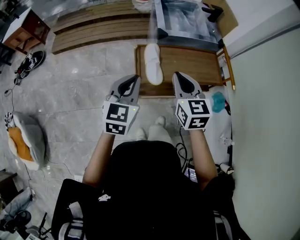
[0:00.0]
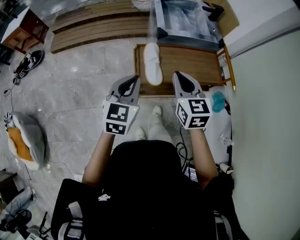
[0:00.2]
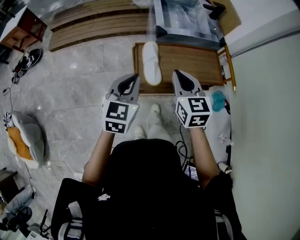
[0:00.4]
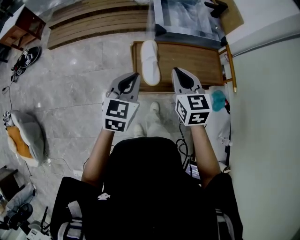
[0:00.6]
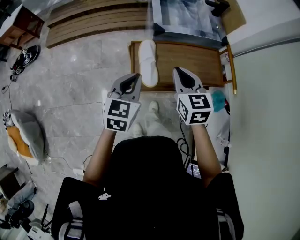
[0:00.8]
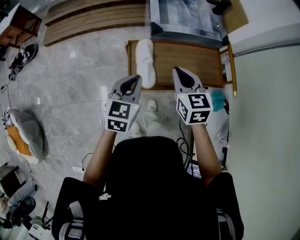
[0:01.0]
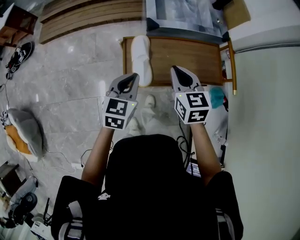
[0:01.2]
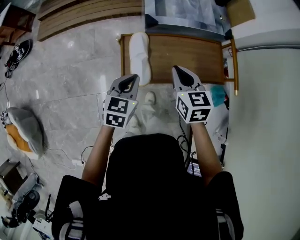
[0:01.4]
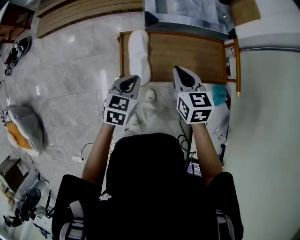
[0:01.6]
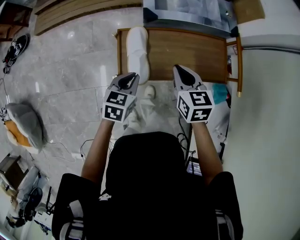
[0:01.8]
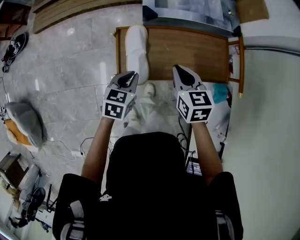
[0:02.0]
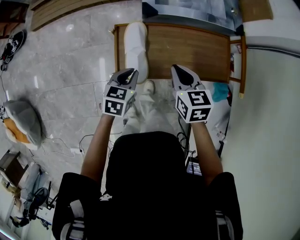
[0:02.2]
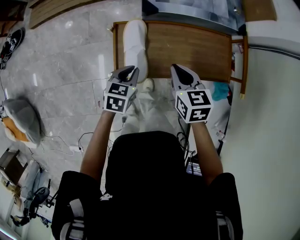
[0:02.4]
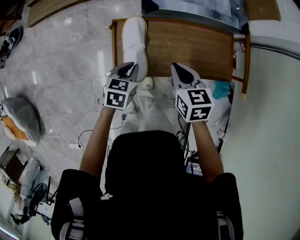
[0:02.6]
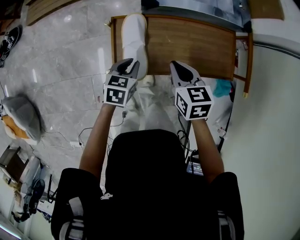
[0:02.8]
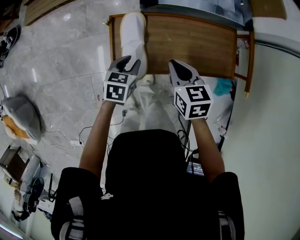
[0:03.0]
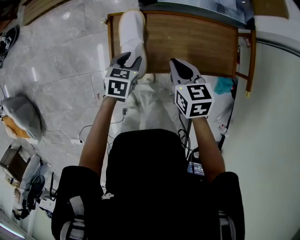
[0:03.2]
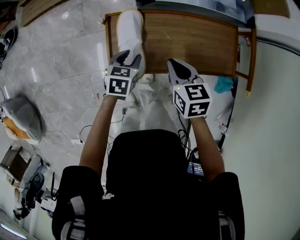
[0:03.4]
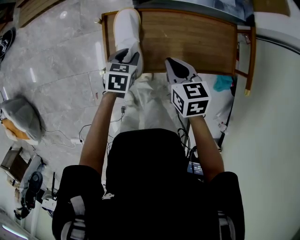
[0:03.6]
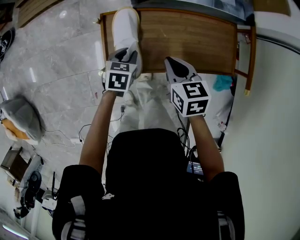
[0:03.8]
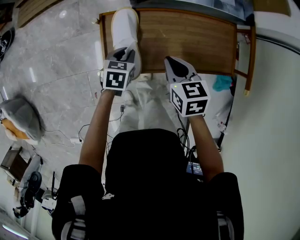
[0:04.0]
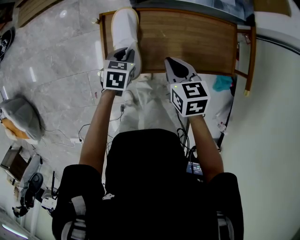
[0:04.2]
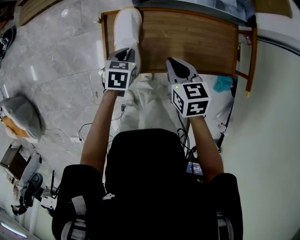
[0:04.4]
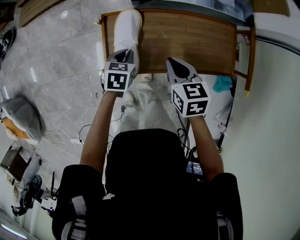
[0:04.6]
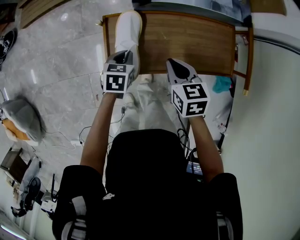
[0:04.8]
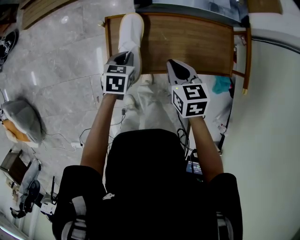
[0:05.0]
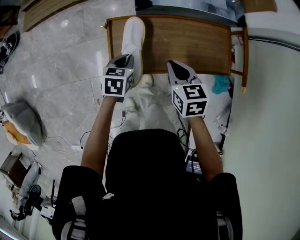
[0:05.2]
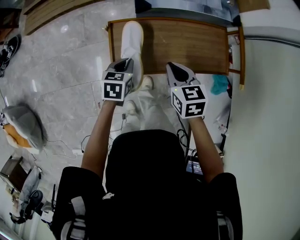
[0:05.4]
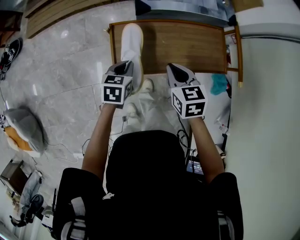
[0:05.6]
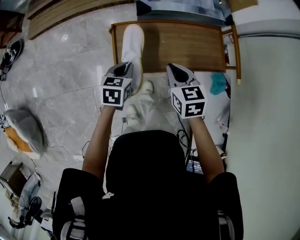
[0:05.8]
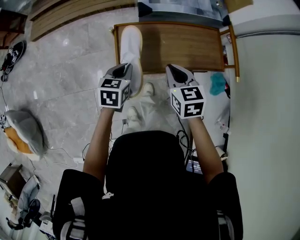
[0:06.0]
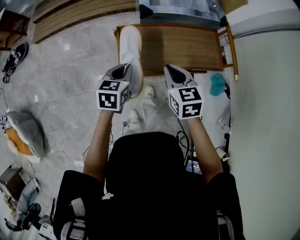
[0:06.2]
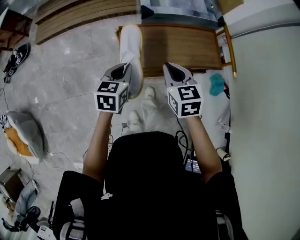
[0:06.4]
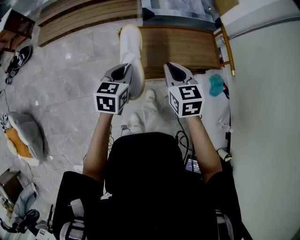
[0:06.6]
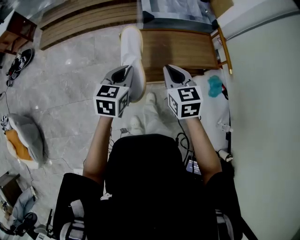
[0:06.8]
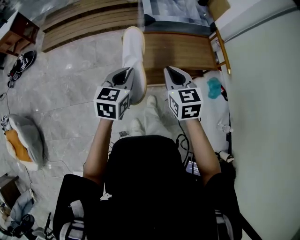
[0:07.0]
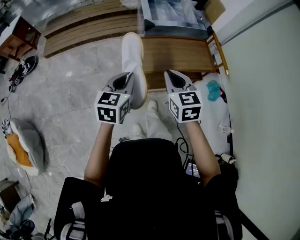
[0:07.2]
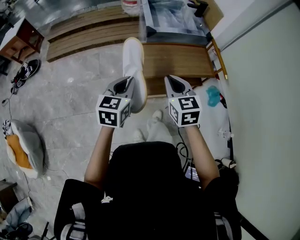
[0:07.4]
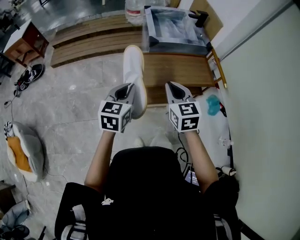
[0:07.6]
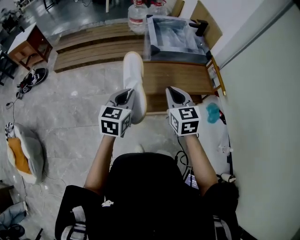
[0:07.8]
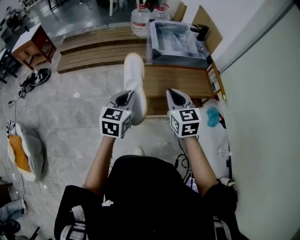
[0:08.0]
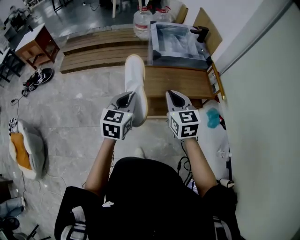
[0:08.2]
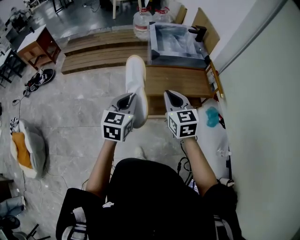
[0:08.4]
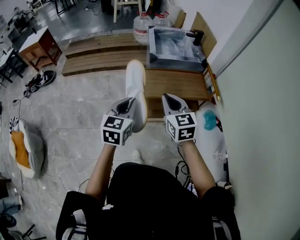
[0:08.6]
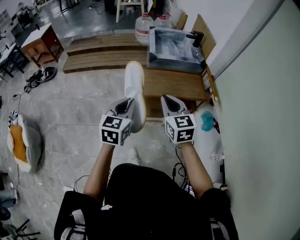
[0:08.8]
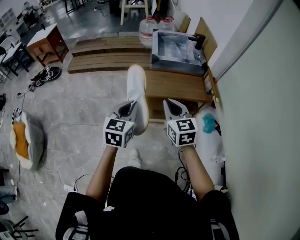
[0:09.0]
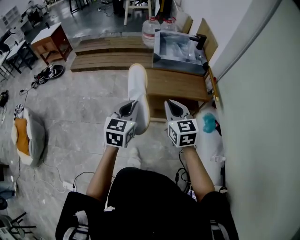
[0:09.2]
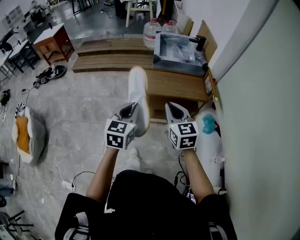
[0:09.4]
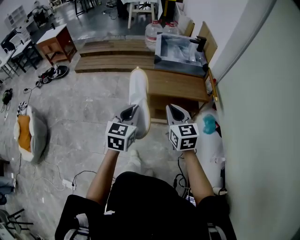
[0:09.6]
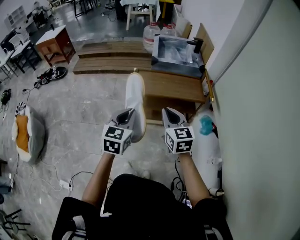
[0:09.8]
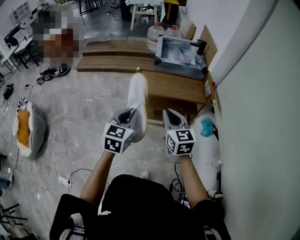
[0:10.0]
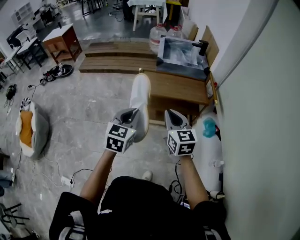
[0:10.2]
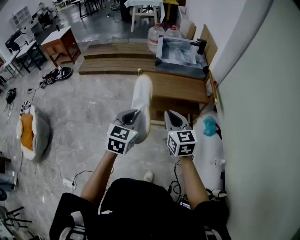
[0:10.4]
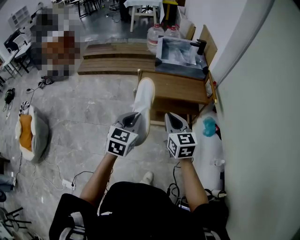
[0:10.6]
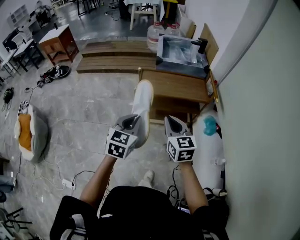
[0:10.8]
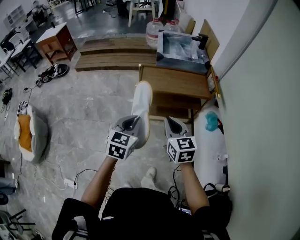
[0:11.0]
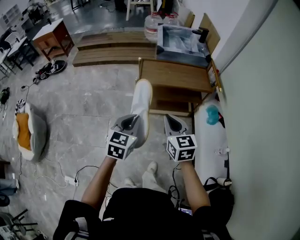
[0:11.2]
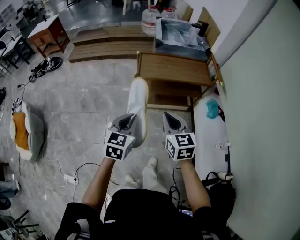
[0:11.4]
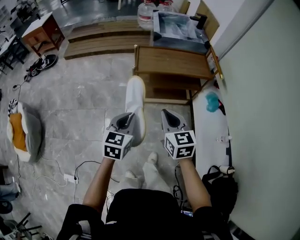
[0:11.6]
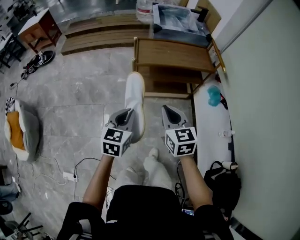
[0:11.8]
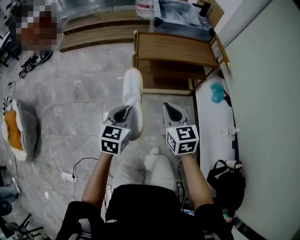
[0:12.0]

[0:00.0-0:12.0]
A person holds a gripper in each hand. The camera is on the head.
0:00.0 to 0:01.6: The right gripper moves forward, downward and to the right, some 25 cm, while the left gripper is displaced downward, forward and to the right by approximately 25 cm, and swivels some 30 degrees.
0:01.6 to 0:03.0: The two grippers go roughly 10 cm downward. The left gripper opens.
0:03.0 to 0:04.4: The left gripper shifts by some 5 cm.
0:04.4 to 0:06.0: Both grippers move upward and backward, about 15 cm.
0:06.0 to 0:07.6: The left gripper is displaced upward and backward by about 25 cm, and swivels some 20 degrees, while the right gripper goes roughly 20 cm backward and upward.
0:07.6 to 0:09.0: The left gripper is displaced backward, to the right and upward by some 15 cm; the right gripper heads backward, upward and to the right, covering roughly 15 cm.
0:09.0 to 0:10.4: The two grippers go approximately 10 cm backward.
0:10.4 to 0:12.0: The two grippers go approximately 20 cm downward and to the left.

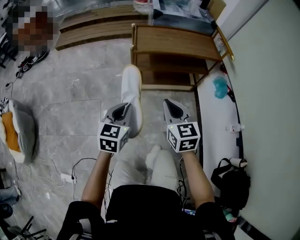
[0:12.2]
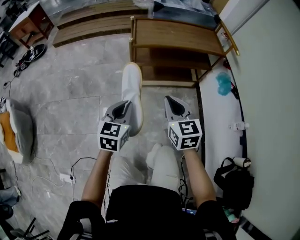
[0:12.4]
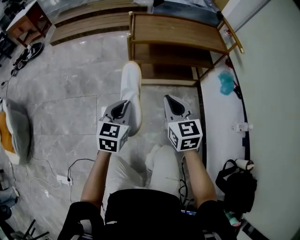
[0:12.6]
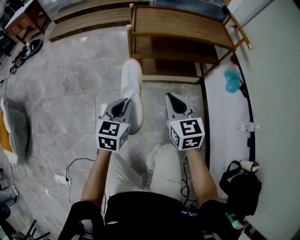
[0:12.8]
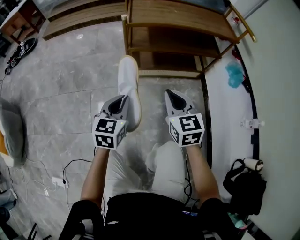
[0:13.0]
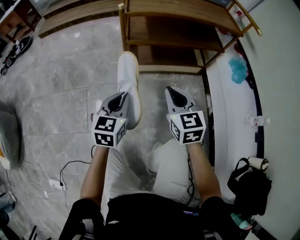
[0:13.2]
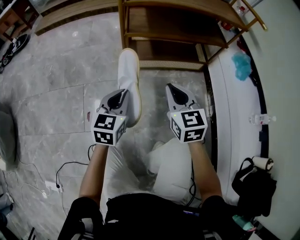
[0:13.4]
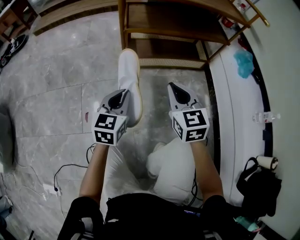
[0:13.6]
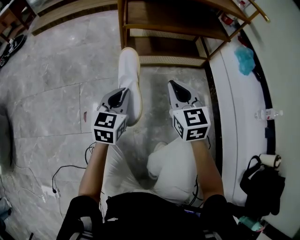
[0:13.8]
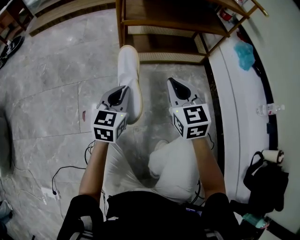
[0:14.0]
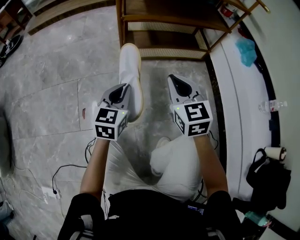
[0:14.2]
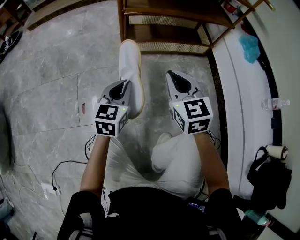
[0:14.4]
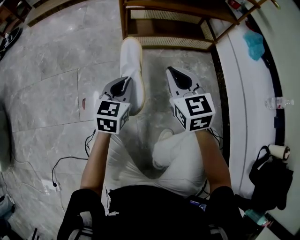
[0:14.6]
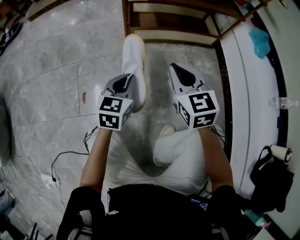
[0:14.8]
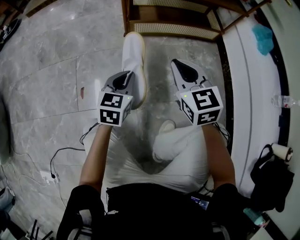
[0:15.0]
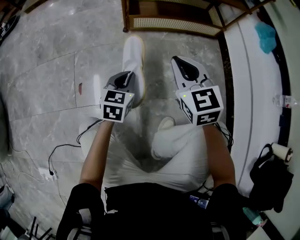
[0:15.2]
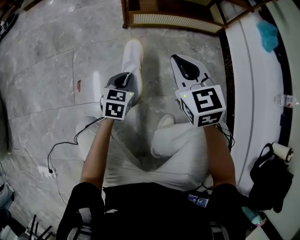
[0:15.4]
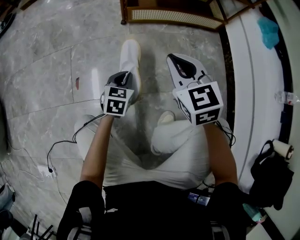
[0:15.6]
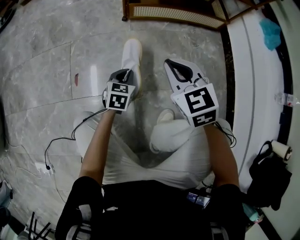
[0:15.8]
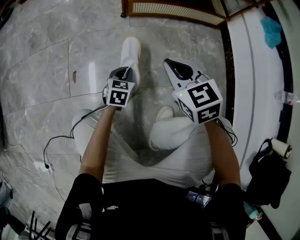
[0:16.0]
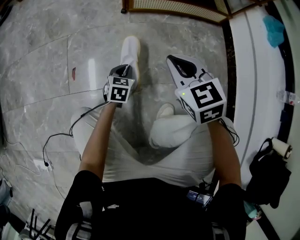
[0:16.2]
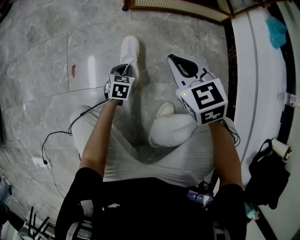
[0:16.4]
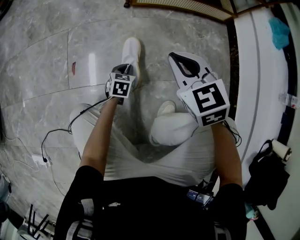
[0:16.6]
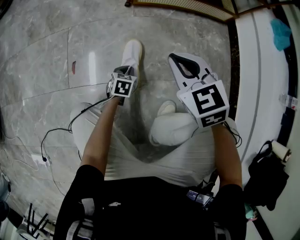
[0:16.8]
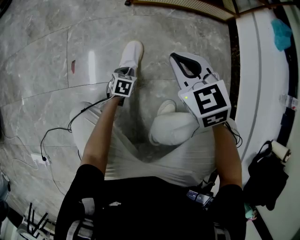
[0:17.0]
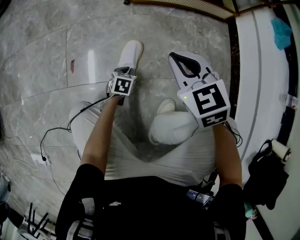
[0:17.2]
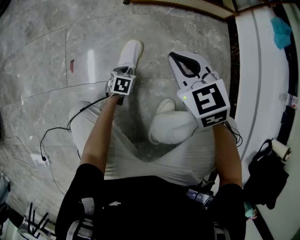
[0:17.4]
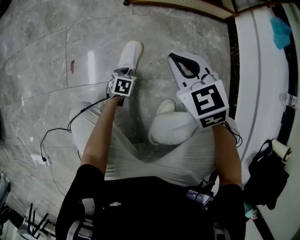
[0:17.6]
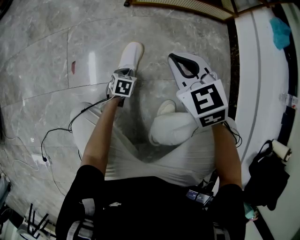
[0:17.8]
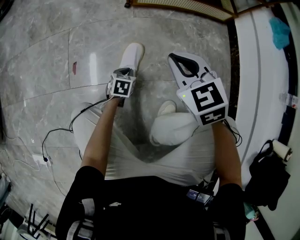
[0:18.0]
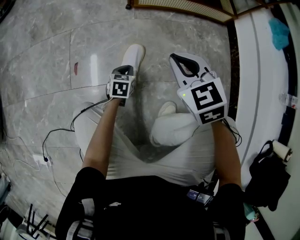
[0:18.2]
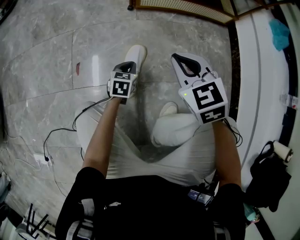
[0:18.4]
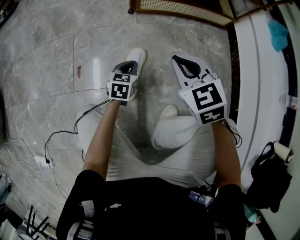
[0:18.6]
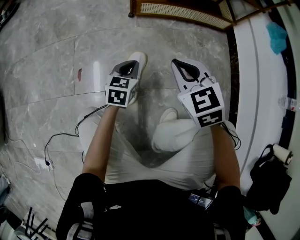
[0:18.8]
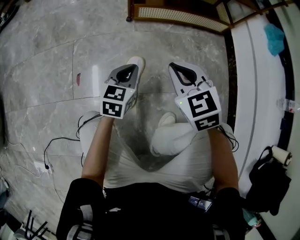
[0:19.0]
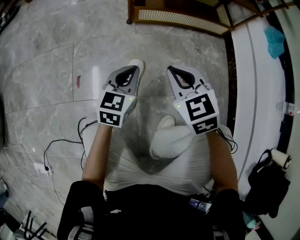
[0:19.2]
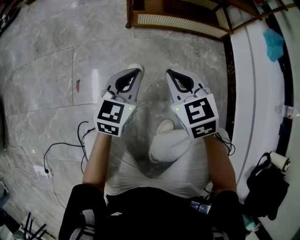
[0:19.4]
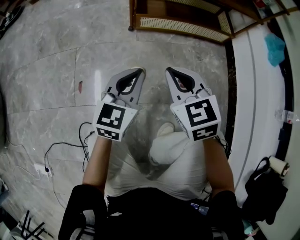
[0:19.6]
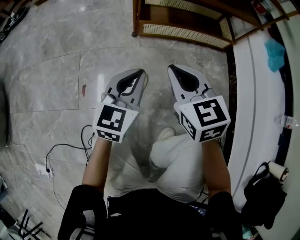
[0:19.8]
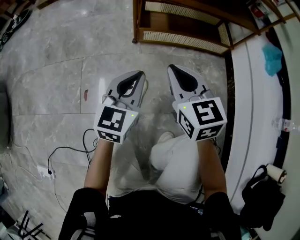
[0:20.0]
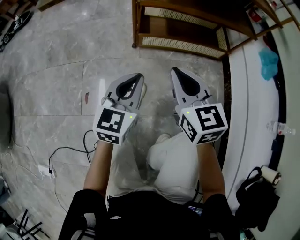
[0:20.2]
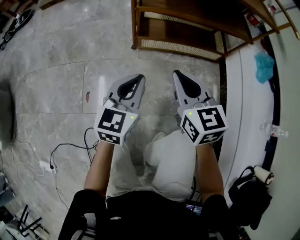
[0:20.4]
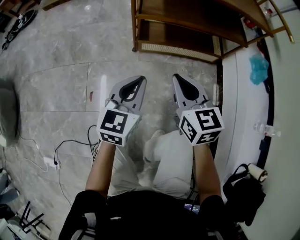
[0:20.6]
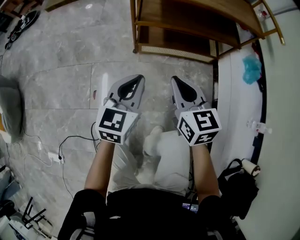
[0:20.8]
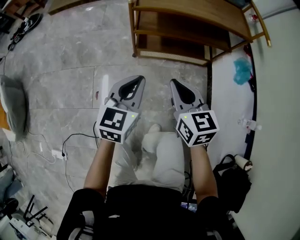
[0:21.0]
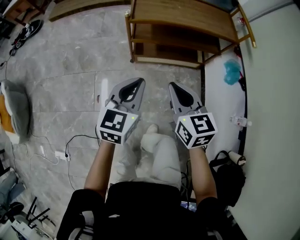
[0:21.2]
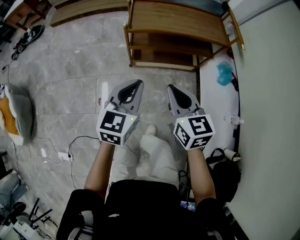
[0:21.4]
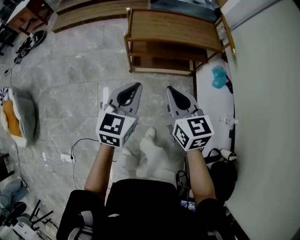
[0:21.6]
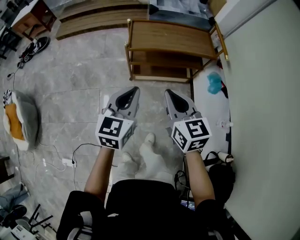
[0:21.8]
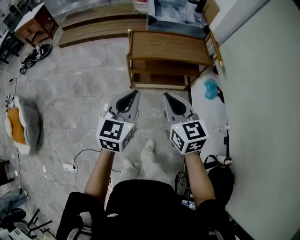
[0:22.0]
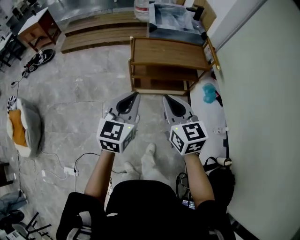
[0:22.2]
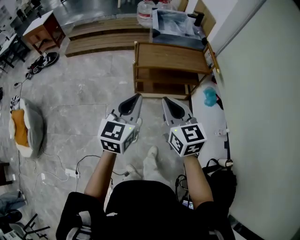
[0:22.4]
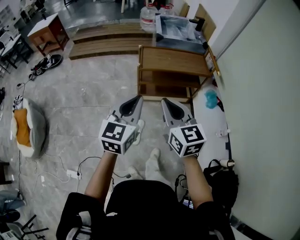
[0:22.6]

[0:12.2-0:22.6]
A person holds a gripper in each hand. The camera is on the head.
0:12.2 to 0:13.6: Both grippers move downward, some 35 cm.
0:13.6 to 0:15.2: The right gripper goes roughly 10 cm downward. Meanwhile the left gripper moves downward, roughly 20 cm.
0:15.2 to 0:16.6: The right gripper moves downward, some 5 cm. The left gripper heads downward, covering about 20 cm.
0:16.6 to 0:18.2: The grippers move only a little.
0:18.2 to 0:19.6: The right gripper changes place by approximately 5 cm, while the left gripper heads upward, covering some 30 cm, and tips its fingers upward by roughly 30 degrees.
0:19.6 to 0:21.2: Both grippers travel together upward, roughly 40 cm. The right gripper turns by approximately 20 degrees.
0:21.2 to 0:22.6: The two grippers go roughly 35 cm upward and backward.

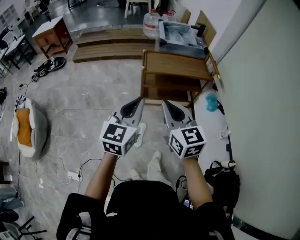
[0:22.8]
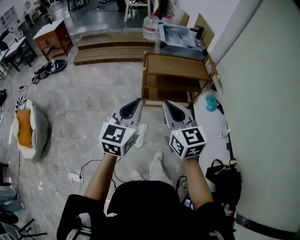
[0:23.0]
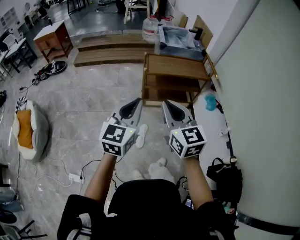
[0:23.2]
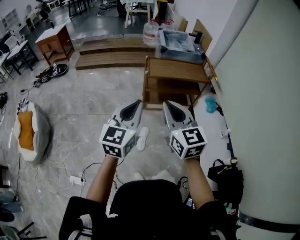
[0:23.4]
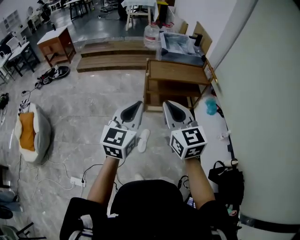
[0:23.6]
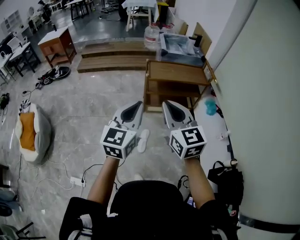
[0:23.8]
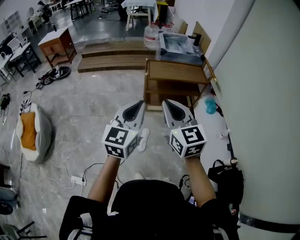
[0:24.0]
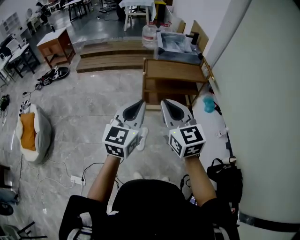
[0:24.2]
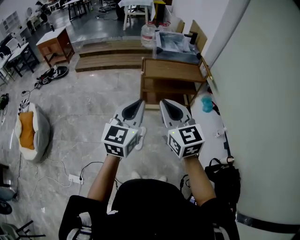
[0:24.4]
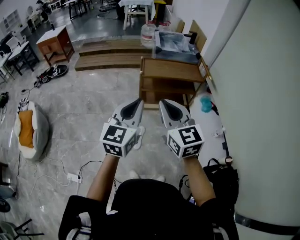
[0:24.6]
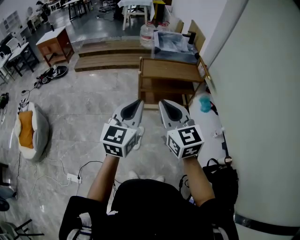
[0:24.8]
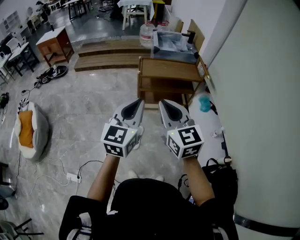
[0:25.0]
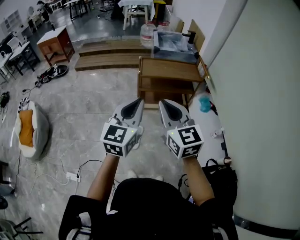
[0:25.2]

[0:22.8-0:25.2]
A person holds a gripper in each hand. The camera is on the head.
0:22.8 to 0:24.0: The left gripper shifts roughly 10 cm backward, while the right gripper shifts approximately 10 cm backward and upward.
0:24.0 to 0:25.2: Both grippers move to the right, approximately 5 cm.
